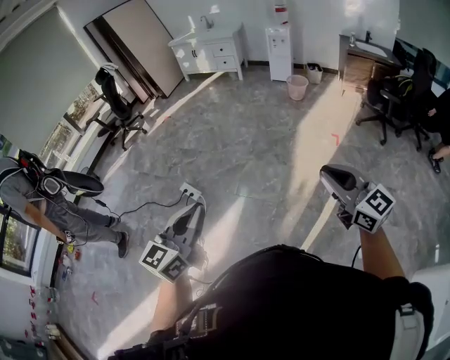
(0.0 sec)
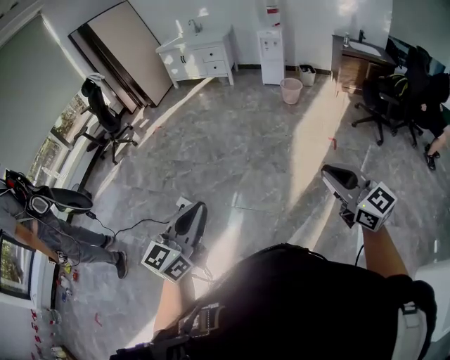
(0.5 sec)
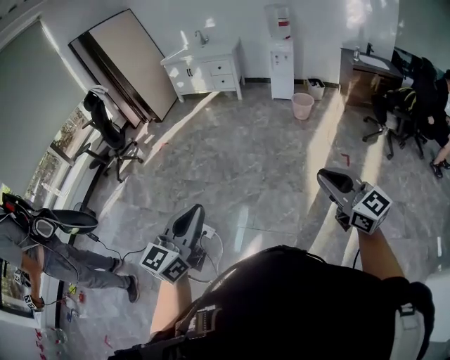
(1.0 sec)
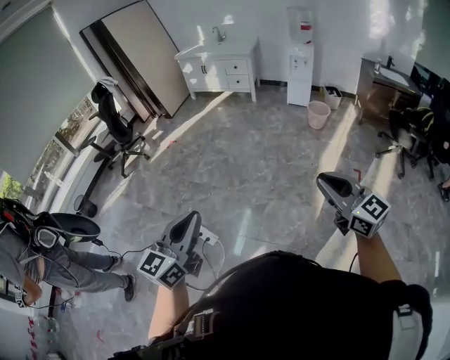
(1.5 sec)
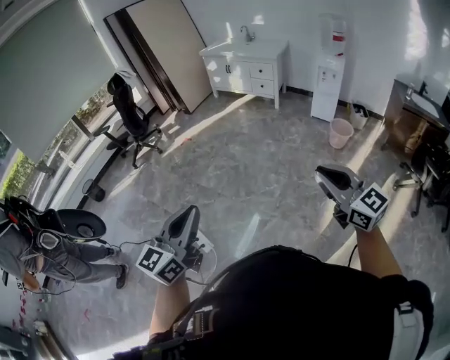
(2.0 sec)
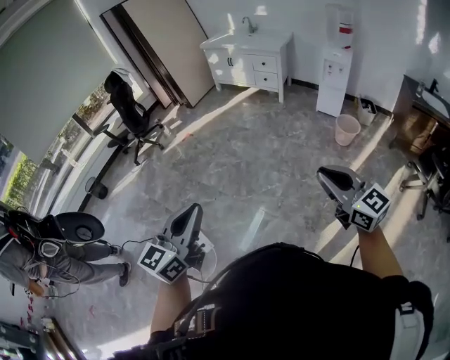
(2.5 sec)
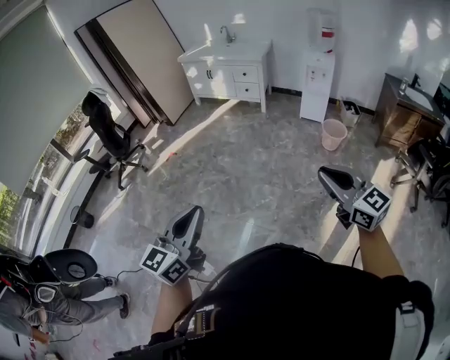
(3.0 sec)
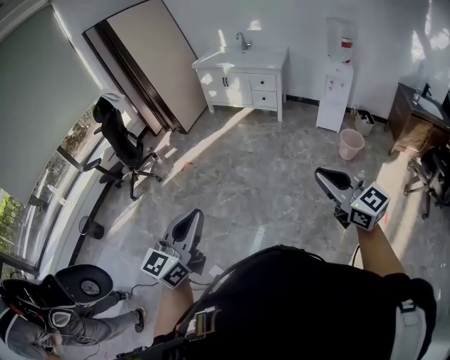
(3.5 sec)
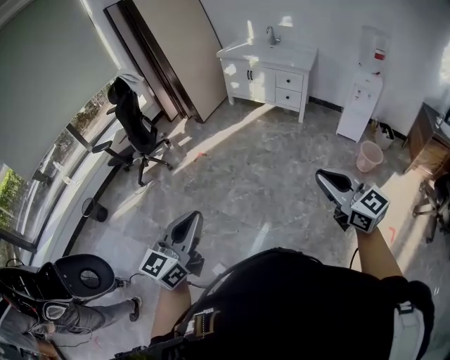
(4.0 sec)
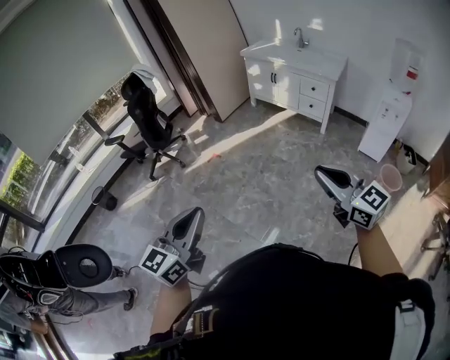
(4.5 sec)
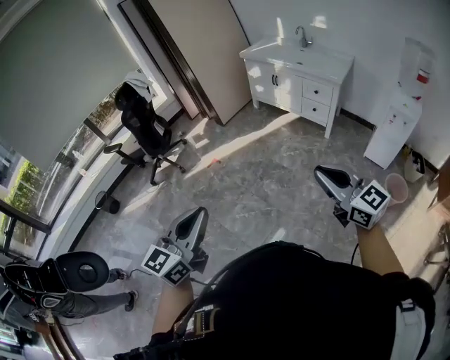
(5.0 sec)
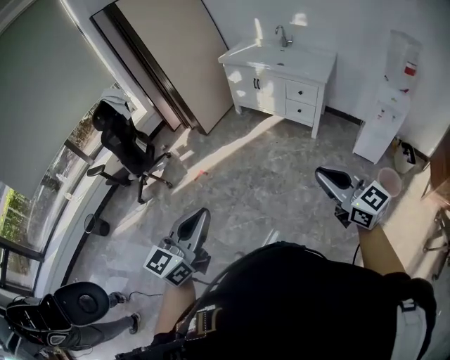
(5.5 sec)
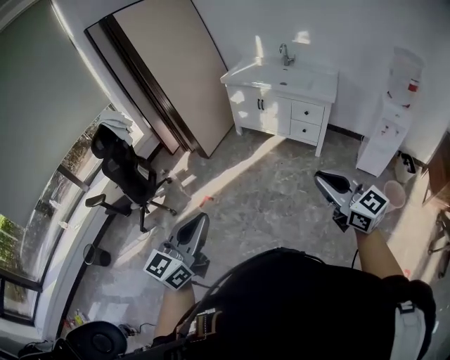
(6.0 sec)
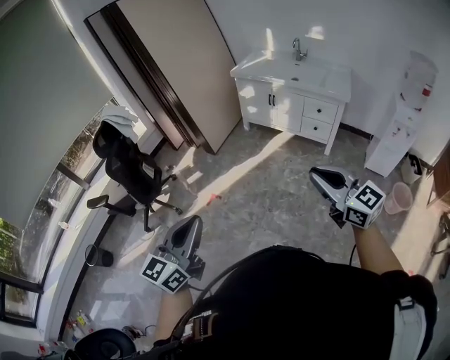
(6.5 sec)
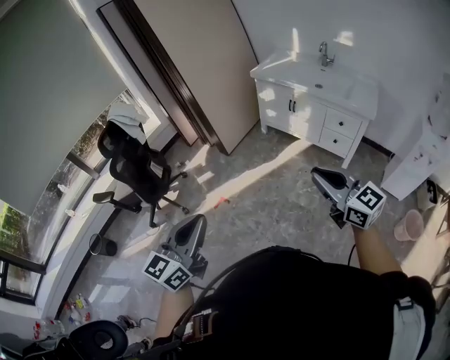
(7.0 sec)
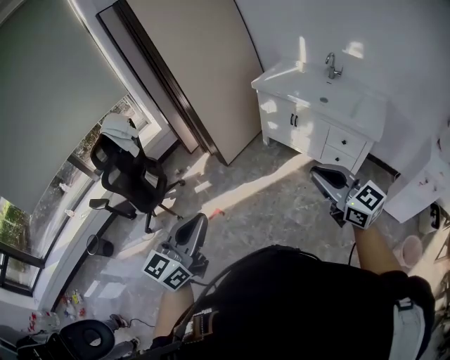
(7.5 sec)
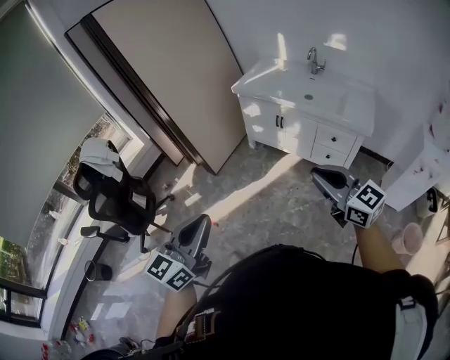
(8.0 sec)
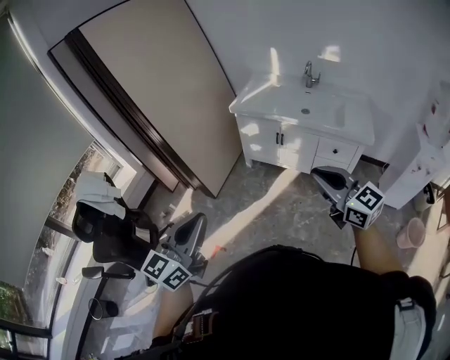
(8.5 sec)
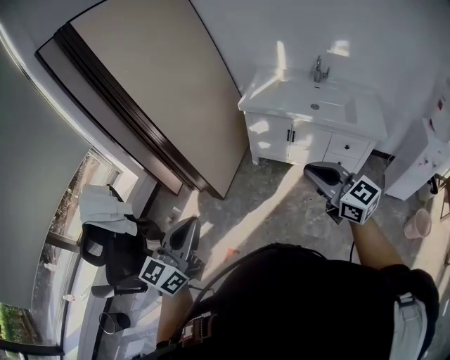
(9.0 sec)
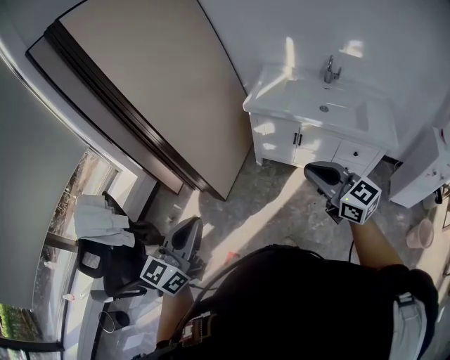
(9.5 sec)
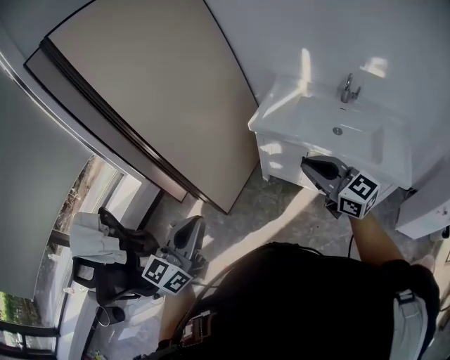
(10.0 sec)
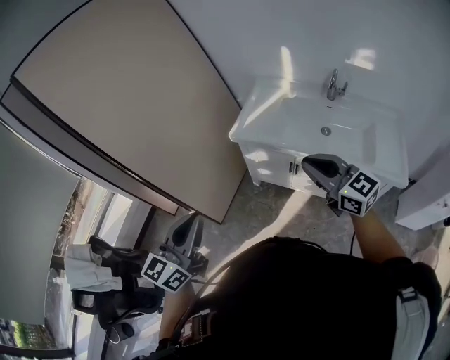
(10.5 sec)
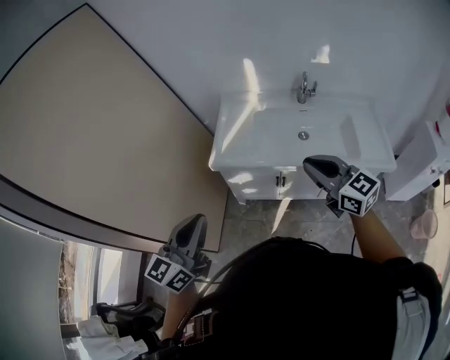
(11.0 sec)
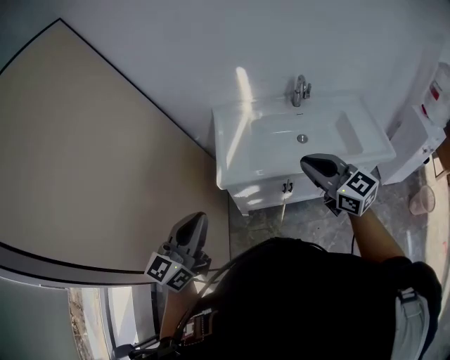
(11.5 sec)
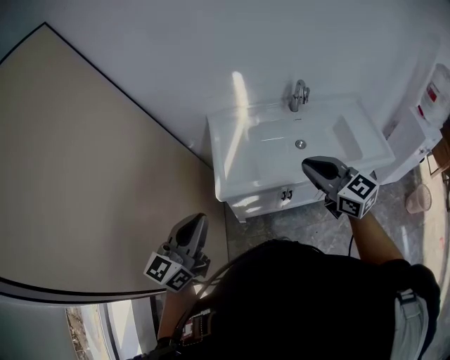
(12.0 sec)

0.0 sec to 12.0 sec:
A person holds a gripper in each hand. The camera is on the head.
0.0 sec to 2.0 sec: The two grippers travel together, forward, some 60 cm.
2.0 sec to 4.0 sec: Both grippers are carried forward and to the left, roughly 50 cm.
4.0 sec to 6.0 sec: Both grippers are carried forward, approximately 50 cm.
6.0 sec to 8.0 sec: The pair of grippers is taken forward, roughly 40 cm.
8.0 sec to 10.0 sec: The pair of grippers is taken forward, roughly 50 cm.
10.0 sec to 12.0 sec: The right gripper changes place by approximately 30 cm, and changes its angle by approximately 40 degrees; the left gripper shifts by some 50 cm, and rotates some 40 degrees.

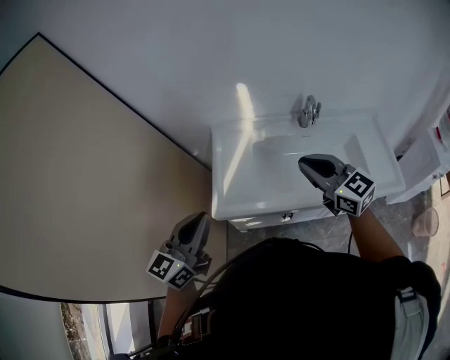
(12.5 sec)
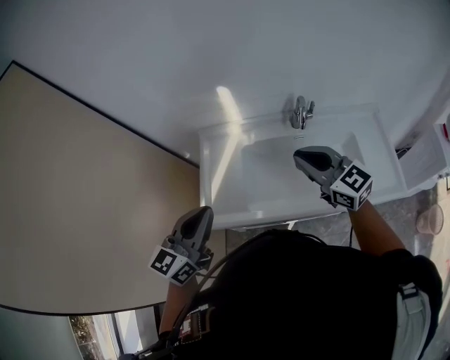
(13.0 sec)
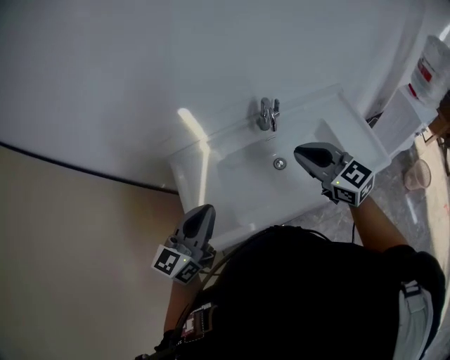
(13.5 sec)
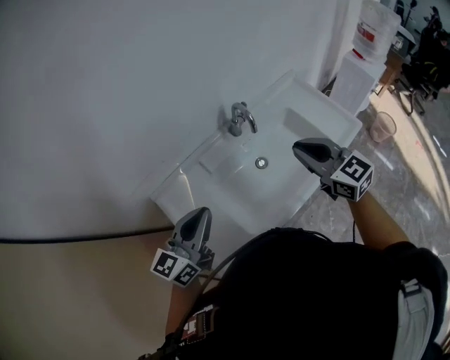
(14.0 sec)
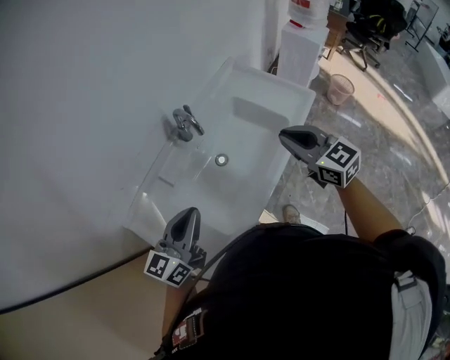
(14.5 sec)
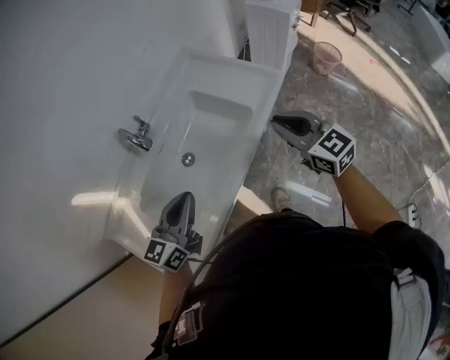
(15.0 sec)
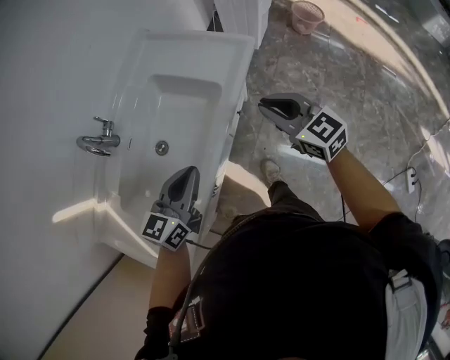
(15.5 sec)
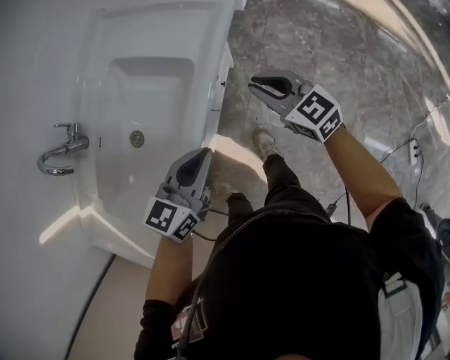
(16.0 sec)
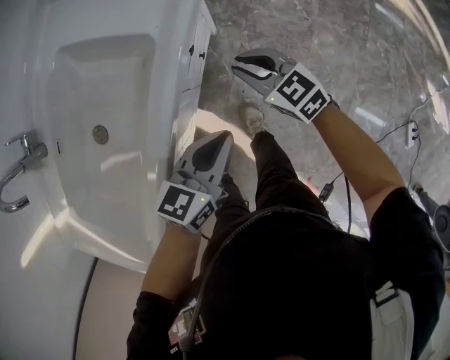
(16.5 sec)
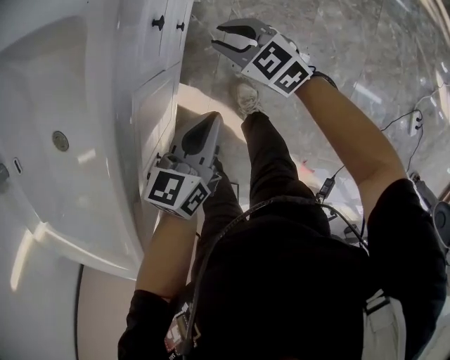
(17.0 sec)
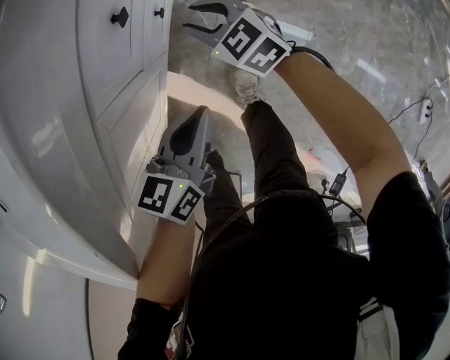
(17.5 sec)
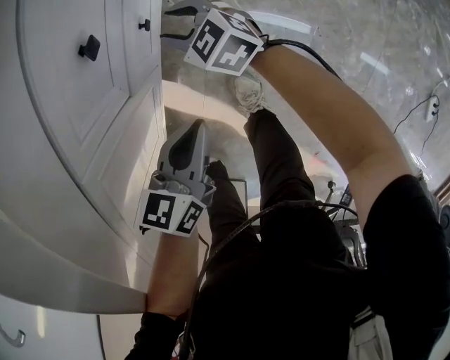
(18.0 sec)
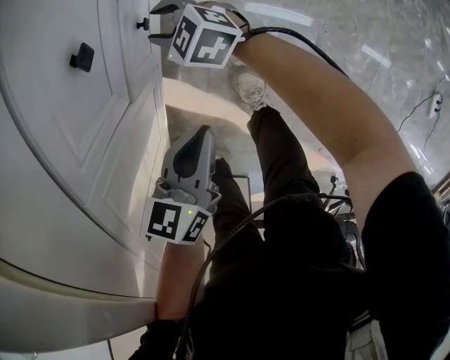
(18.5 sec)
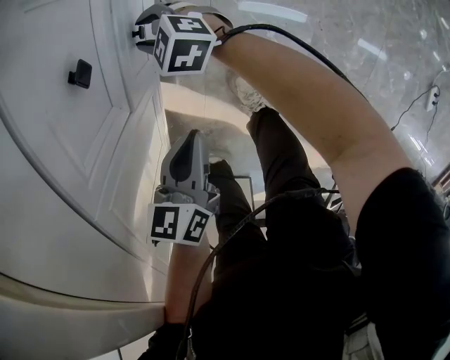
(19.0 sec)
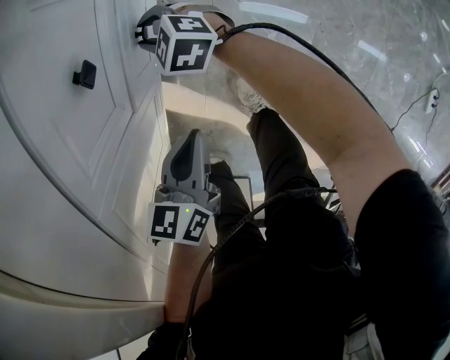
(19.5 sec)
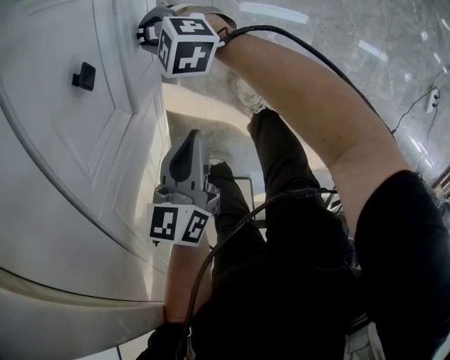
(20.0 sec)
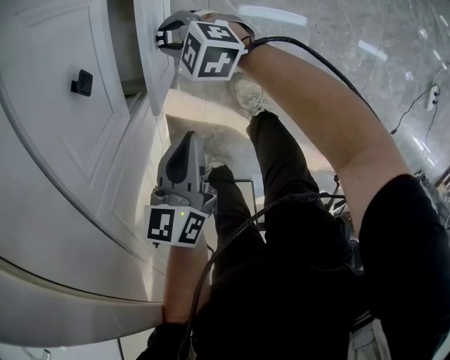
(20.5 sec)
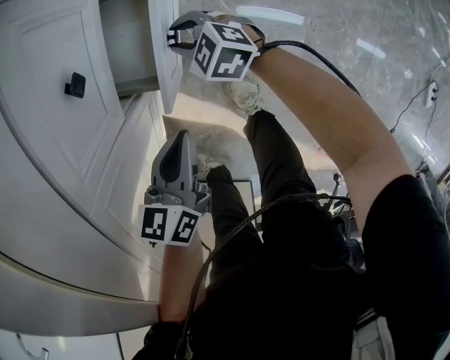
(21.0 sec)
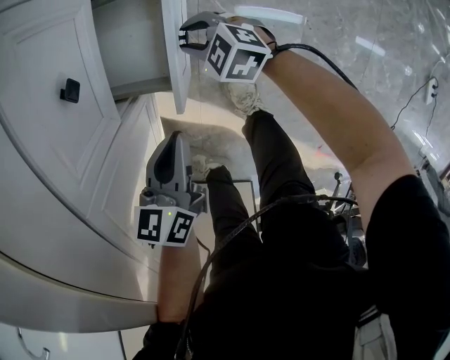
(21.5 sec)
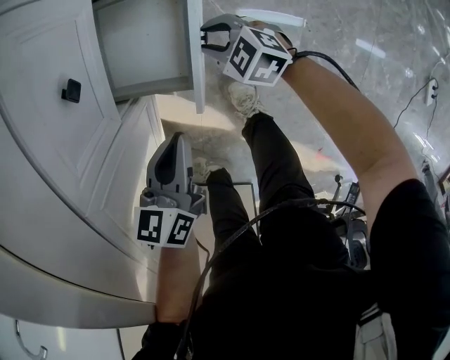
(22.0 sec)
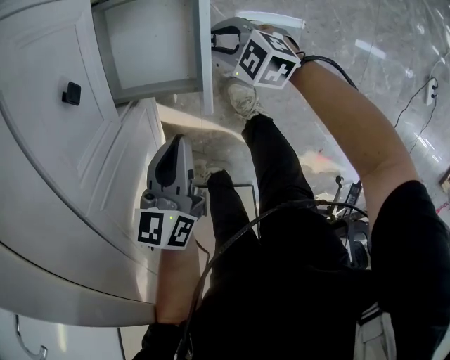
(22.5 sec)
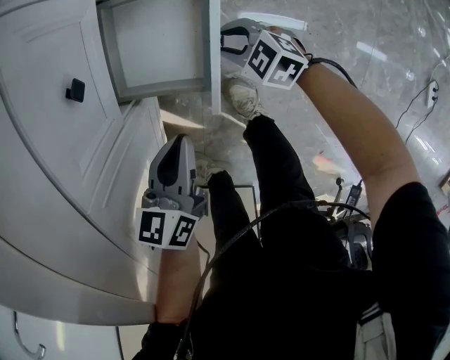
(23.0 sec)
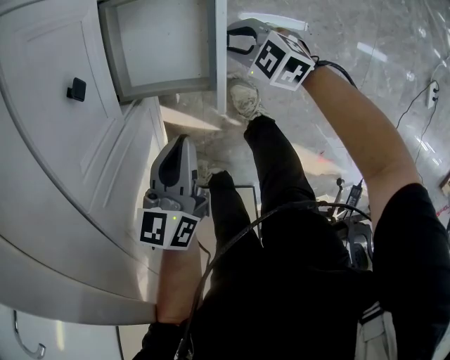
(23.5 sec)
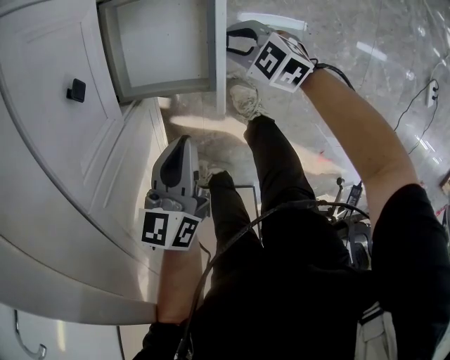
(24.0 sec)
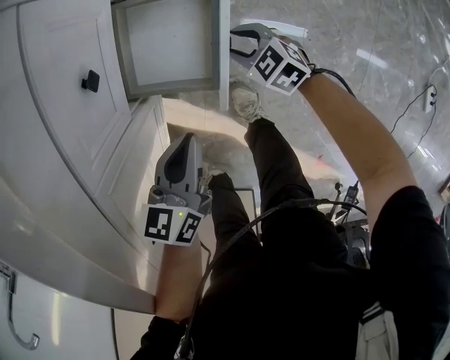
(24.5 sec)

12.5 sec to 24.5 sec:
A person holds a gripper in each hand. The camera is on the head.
12.5 sec to 14.5 sec: The right gripper moves roughly 20 cm, and changes its angle by approximately 50 degrees; the left gripper changes place by approximately 30 cm, and swivels roughly 50 degrees.
14.5 sec to 16.5 sec: The right gripper shifts about 50 cm downward and to the right. The left gripper travels to the right and downward by roughly 60 cm, and changes its angle by about 40 degrees.
16.5 sec to 18.5 sec: The grippers both shift downward by some 35 cm. The right gripper opens up.
18.5 sec to 20.5 sec: The grippers make only small movements.
20.5 sec to 22.5 sec: The right gripper heads to the right and backward, covering about 15 cm.
22.5 sec to 24.5 sec: The grippers stay close to where they were, moving slightly.

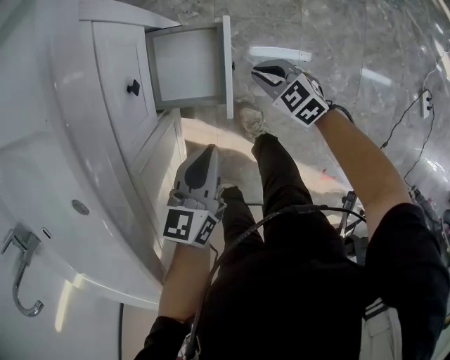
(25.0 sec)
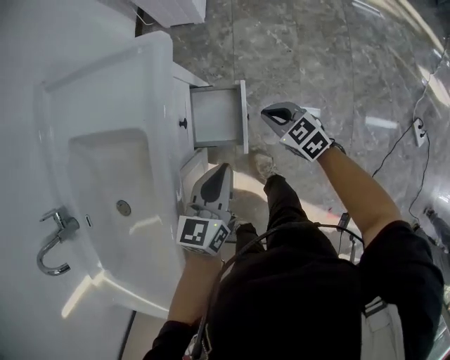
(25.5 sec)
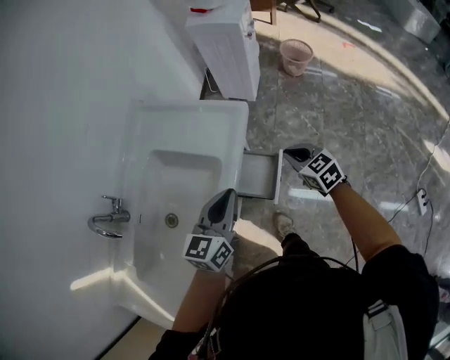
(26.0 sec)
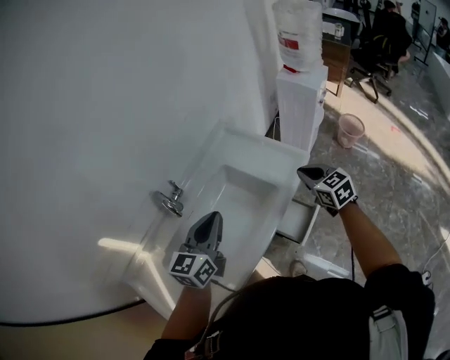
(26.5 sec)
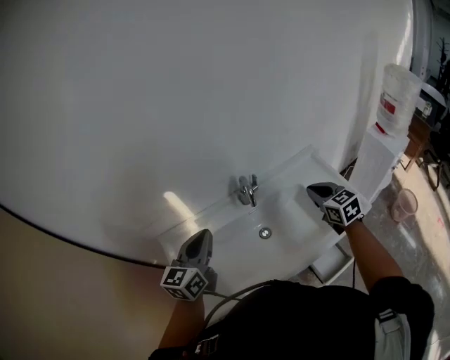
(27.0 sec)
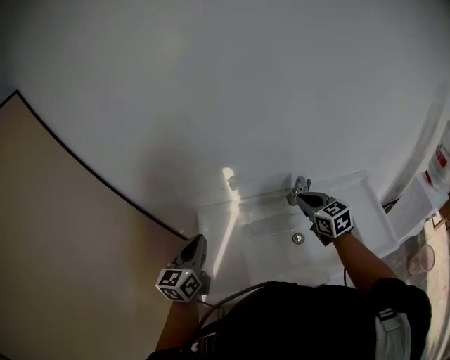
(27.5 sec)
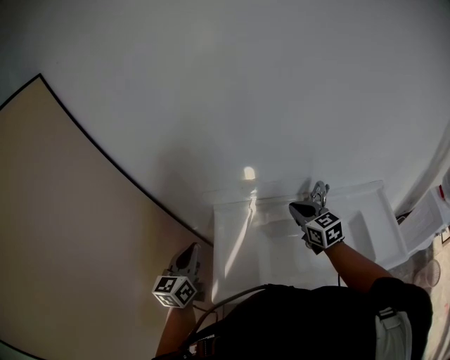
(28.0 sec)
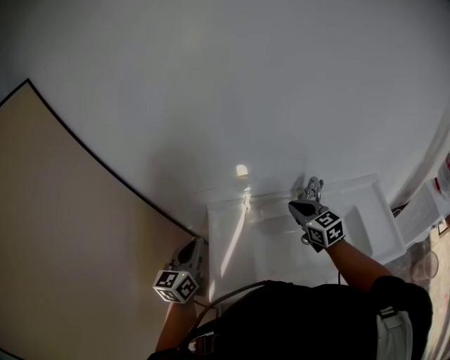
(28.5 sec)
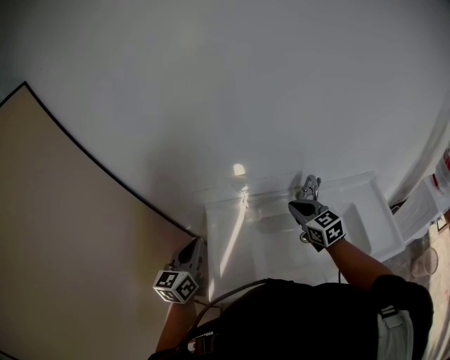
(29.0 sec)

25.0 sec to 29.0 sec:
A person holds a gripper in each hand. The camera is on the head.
25.0 sec to 27.0 sec: The pair of grippers is taken roughly 50 cm. Both grippers move upward, some 60 cm. The left gripper tilts its fingers roughly 30 degrees upward. The right gripper turns by about 40 degrees.
27.0 sec to 29.0 sec: The left gripper ends up roughly 25 cm from where it was, and swivels some 20 degrees. The right gripper changes place by approximately 30 cm, and swivels some 30 degrees.
